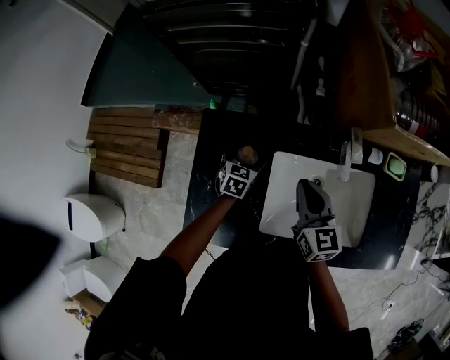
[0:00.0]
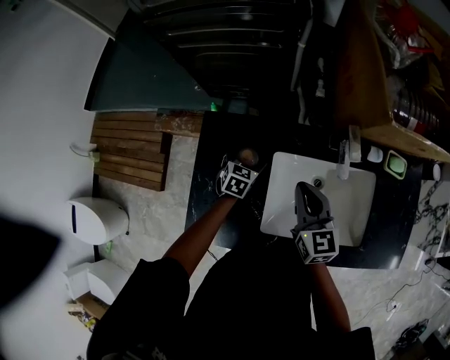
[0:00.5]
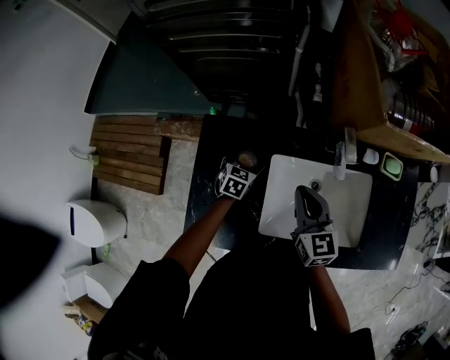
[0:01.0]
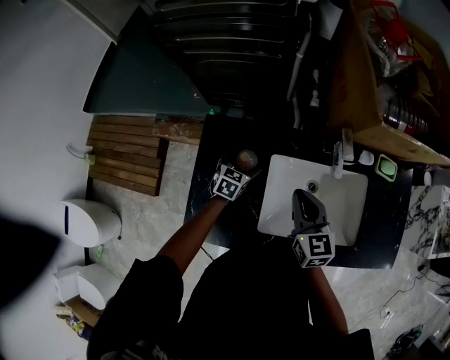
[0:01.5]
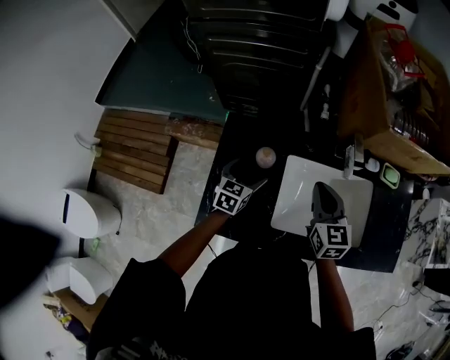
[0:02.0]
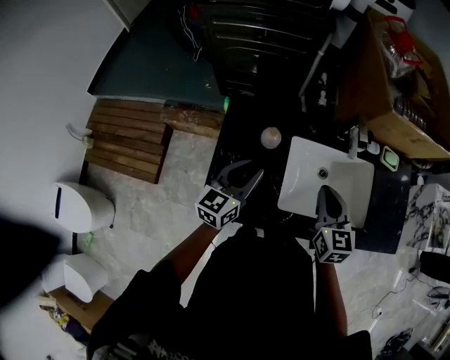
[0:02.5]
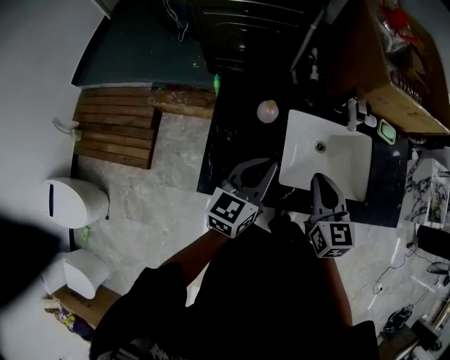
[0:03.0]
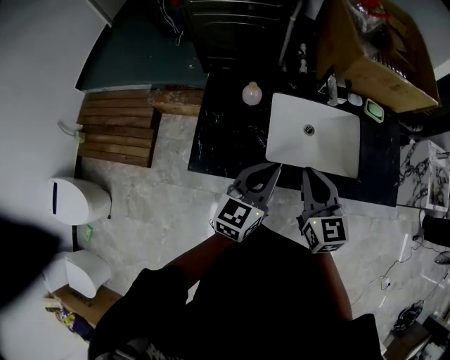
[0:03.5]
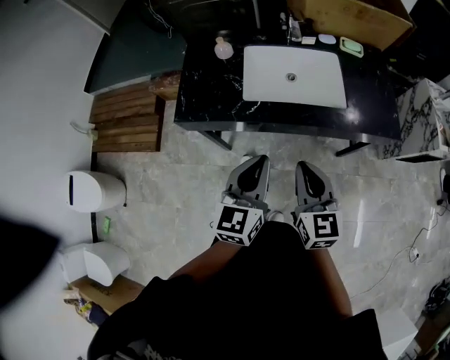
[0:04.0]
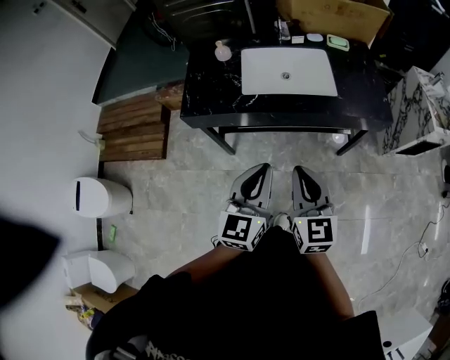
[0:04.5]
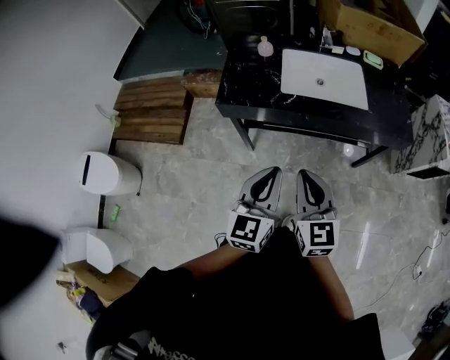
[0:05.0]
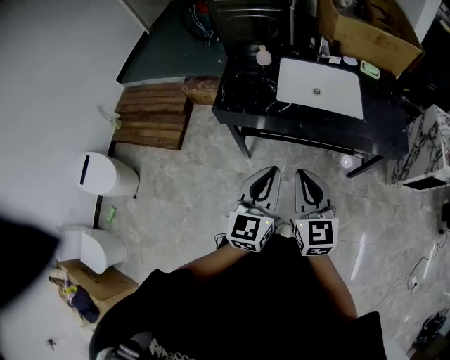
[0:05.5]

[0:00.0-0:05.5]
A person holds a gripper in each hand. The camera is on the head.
0:00.0 to 0:02.0: The right gripper ends up some 5 cm from where it was. Meanwhile the left gripper travels upward and backward by some 15 cm.
0:02.0 to 0:03.5: The right gripper goes some 20 cm backward; the left gripper is displaced backward, upward and to the right by some 30 cm, turns by some 20 degrees, and closes up.
0:03.5 to 0:05.5: The two grippers go approximately 35 cm backward. The left gripper swivels some 20 degrees.

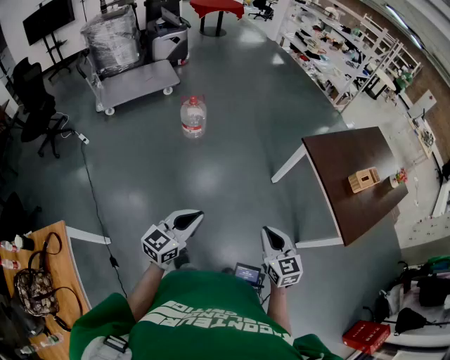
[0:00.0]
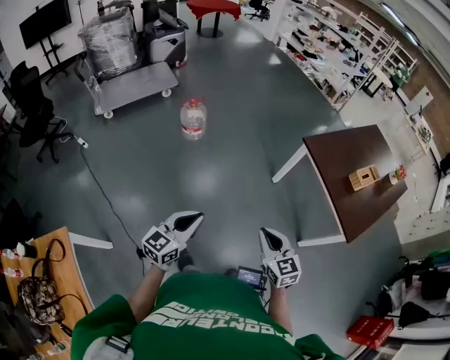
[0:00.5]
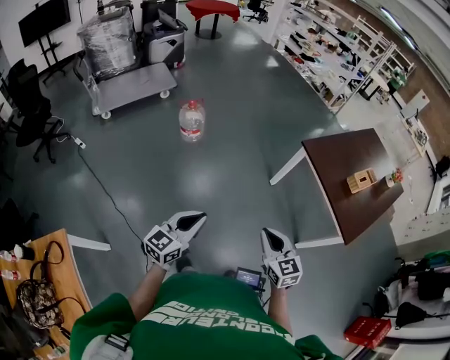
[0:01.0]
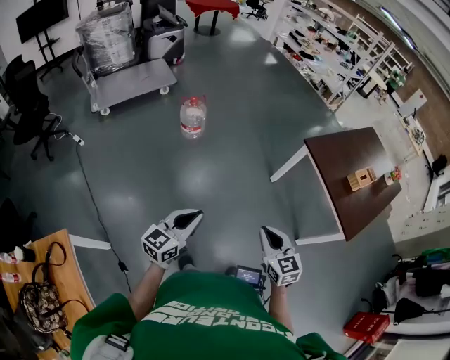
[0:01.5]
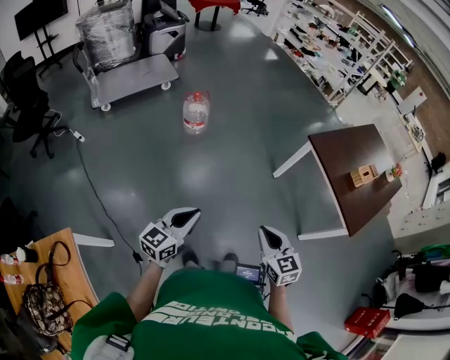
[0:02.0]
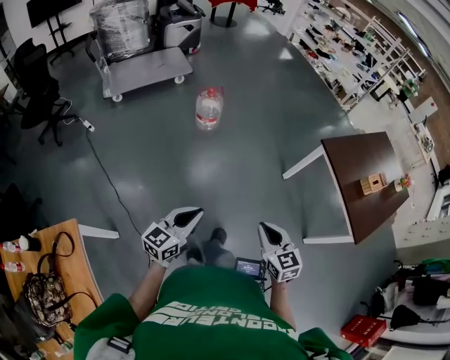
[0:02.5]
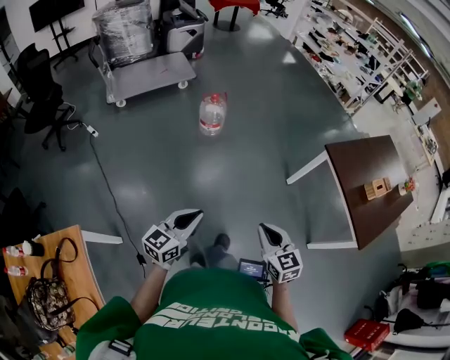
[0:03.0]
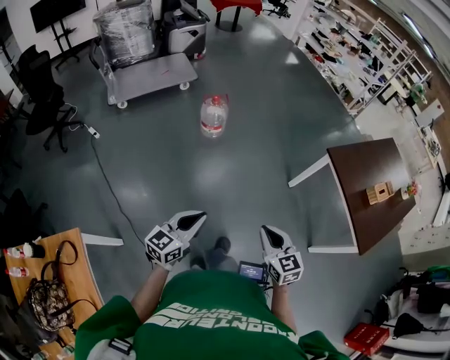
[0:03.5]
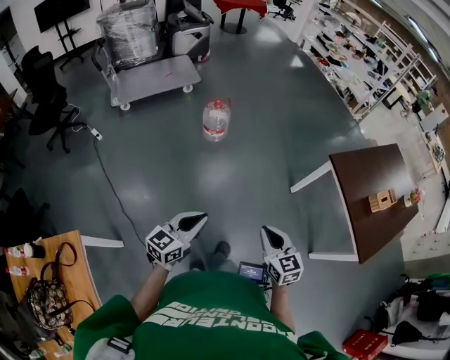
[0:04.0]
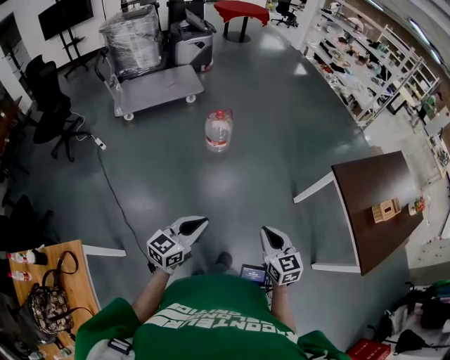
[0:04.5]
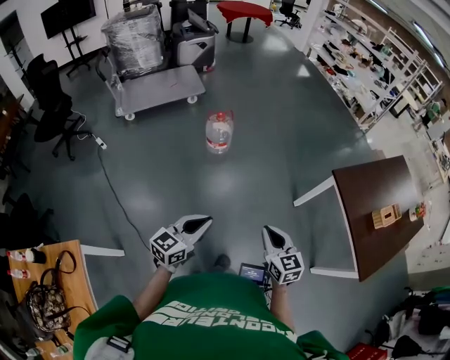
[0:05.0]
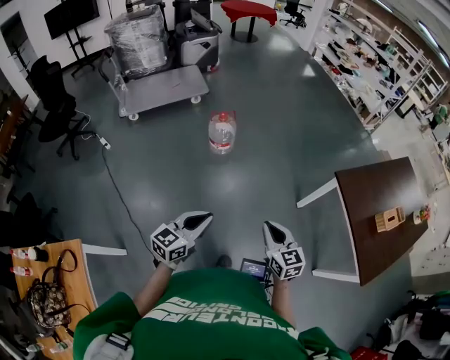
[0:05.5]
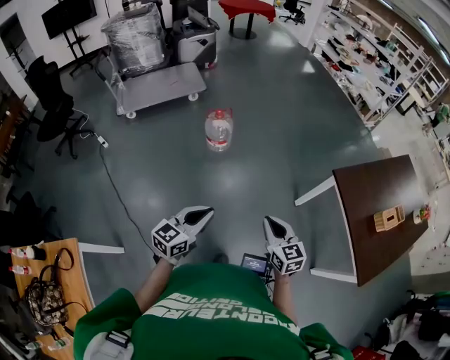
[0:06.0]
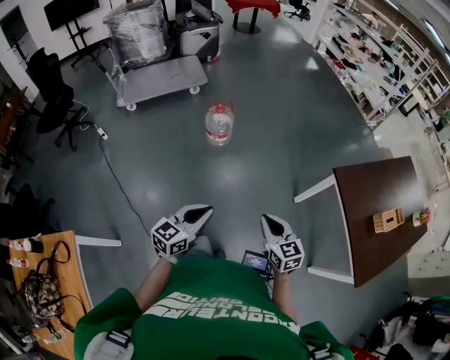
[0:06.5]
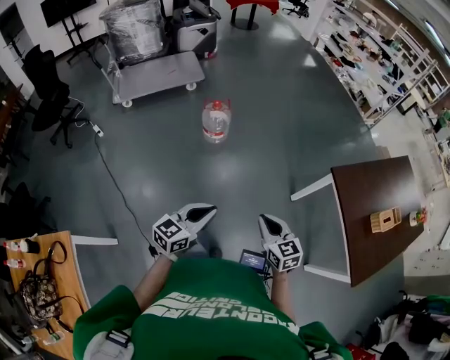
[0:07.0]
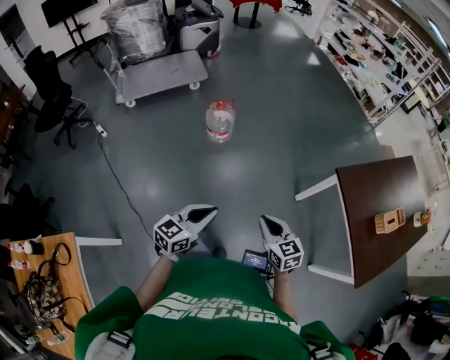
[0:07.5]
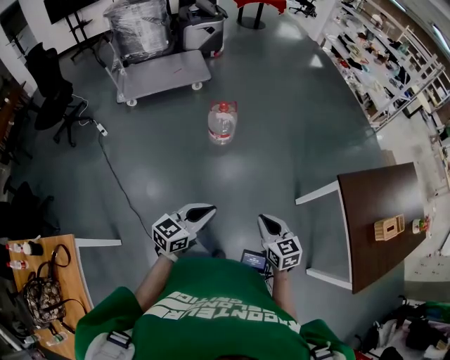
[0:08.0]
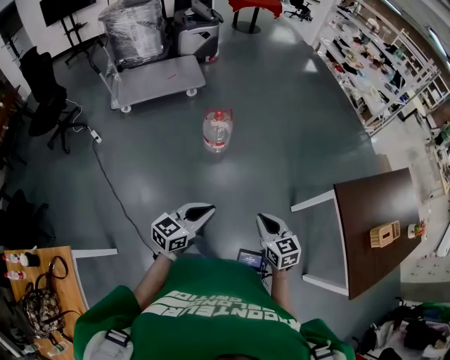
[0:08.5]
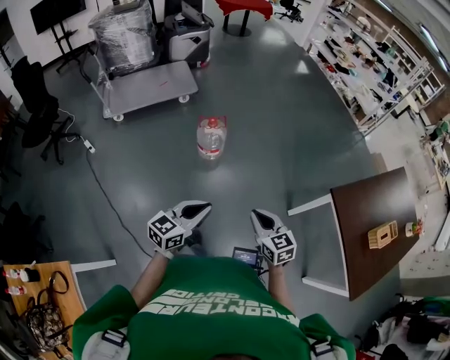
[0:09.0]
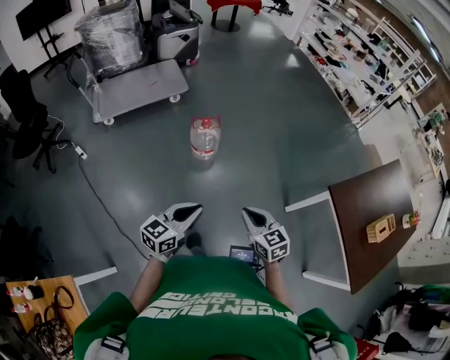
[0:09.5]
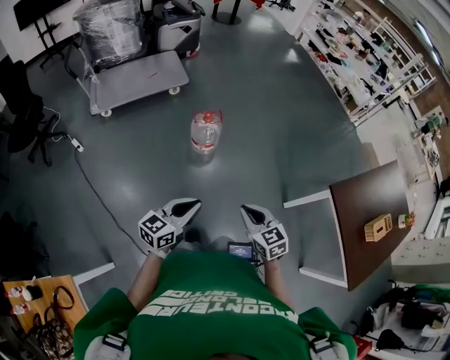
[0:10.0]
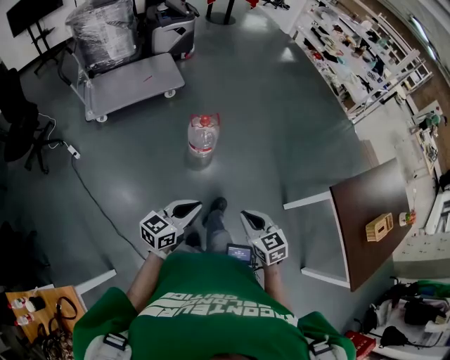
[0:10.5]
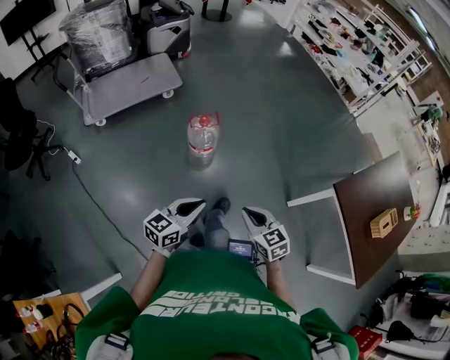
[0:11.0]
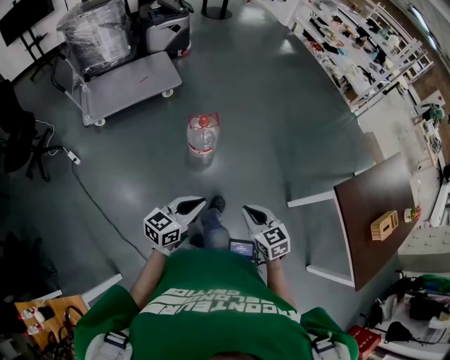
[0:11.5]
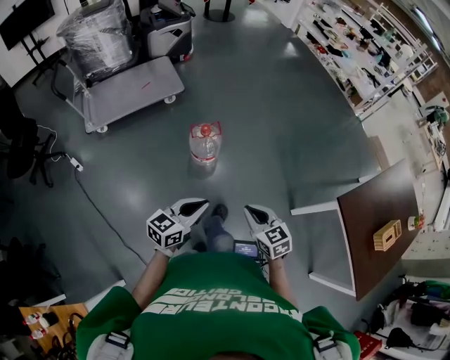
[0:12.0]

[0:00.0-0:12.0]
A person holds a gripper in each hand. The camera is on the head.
0:00.0 to 0:02.0: Both grippers move to the left, about 10 cm.
0:02.0 to 0:04.0: Both grippers move forward, about 10 cm.
0:04.0 to 0:06.0: The right gripper is displaced forward by roughly 15 cm; the left gripper moves forward and to the right, some 15 cm.
0:06.0 to 0:08.0: The right gripper changes place by some 5 cm.
0:08.0 to 0:10.0: The left gripper heads forward and to the left, covering roughly 20 cm; the right gripper heads to the left and forward, covering roughly 20 cm.
0:10.0 to 0:12.0: The two grippers go roughly 15 cm forward.

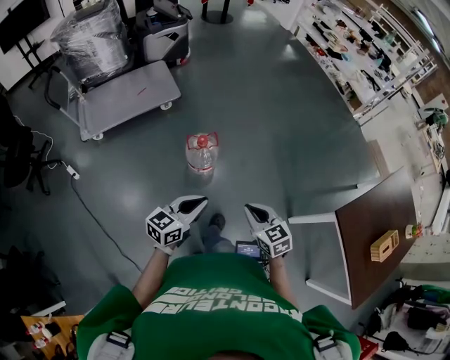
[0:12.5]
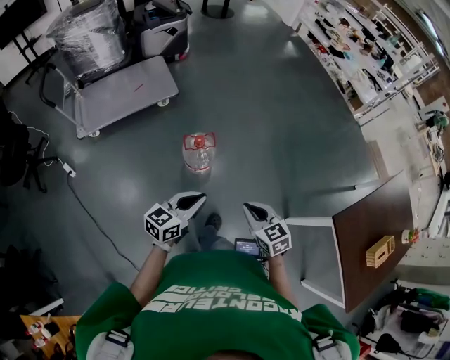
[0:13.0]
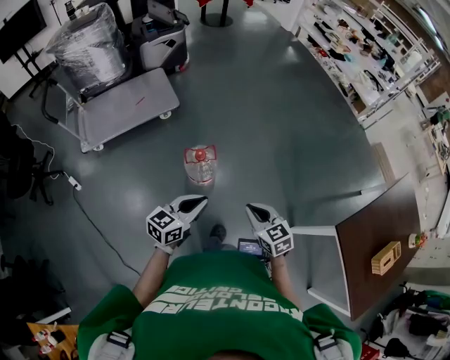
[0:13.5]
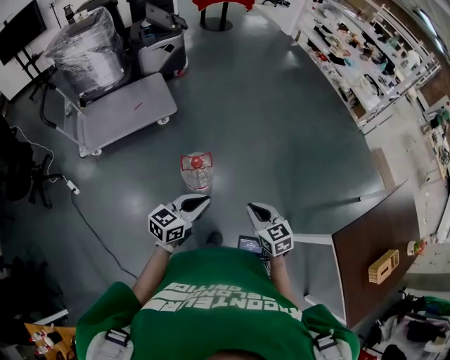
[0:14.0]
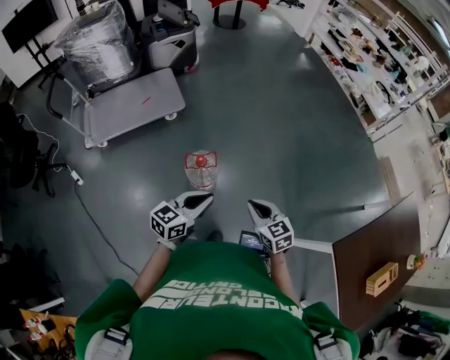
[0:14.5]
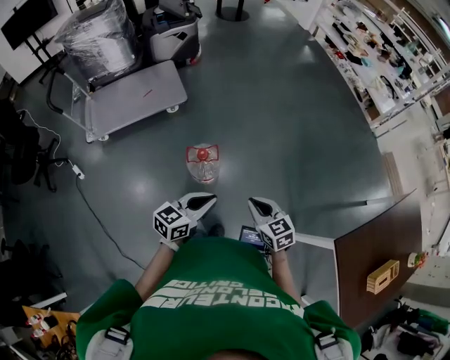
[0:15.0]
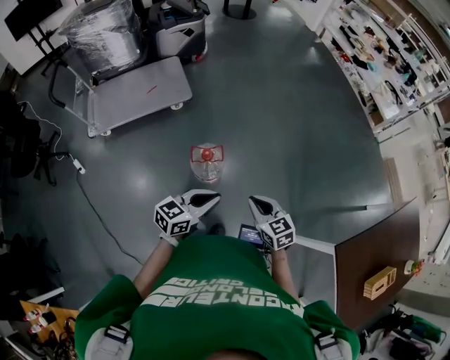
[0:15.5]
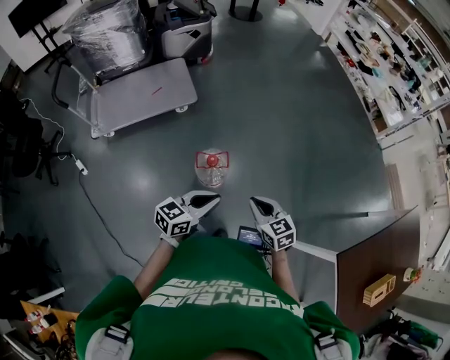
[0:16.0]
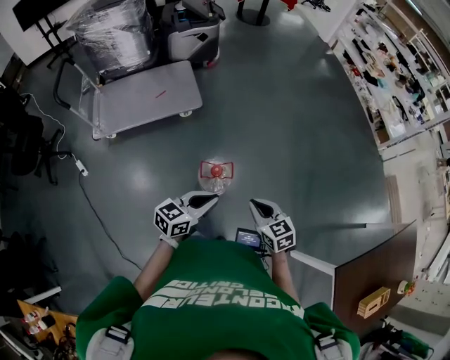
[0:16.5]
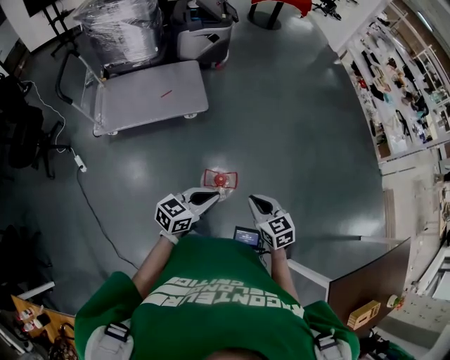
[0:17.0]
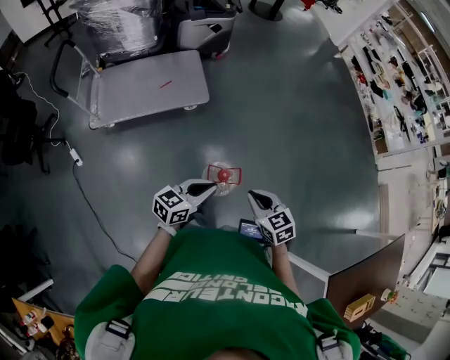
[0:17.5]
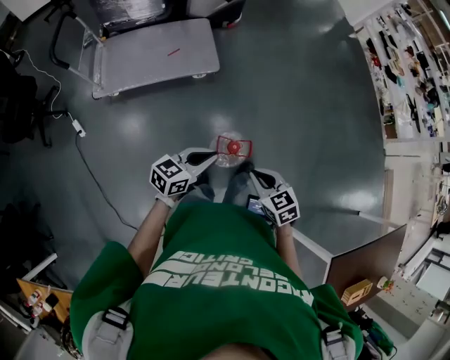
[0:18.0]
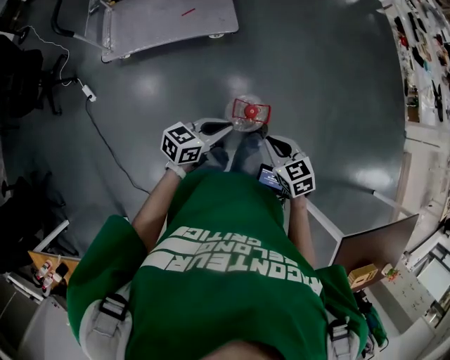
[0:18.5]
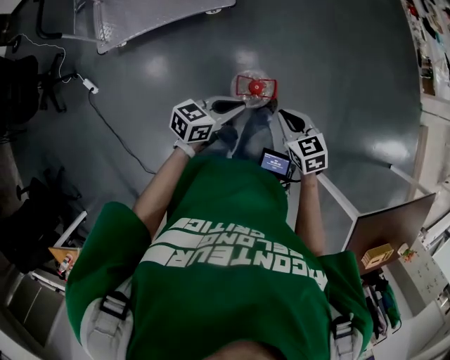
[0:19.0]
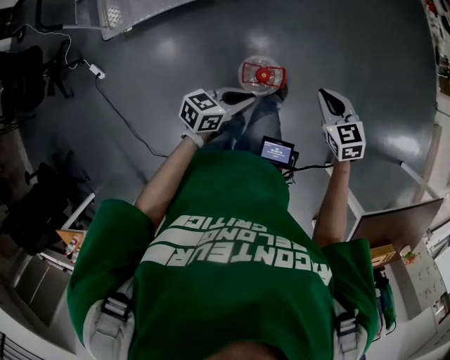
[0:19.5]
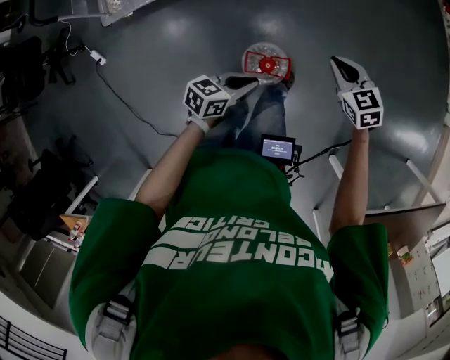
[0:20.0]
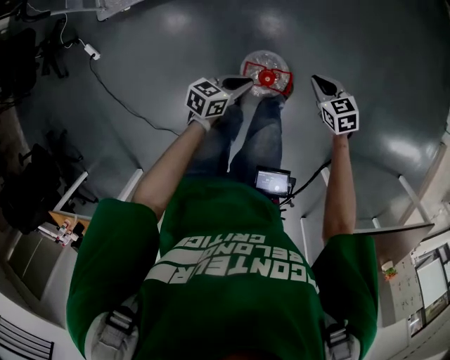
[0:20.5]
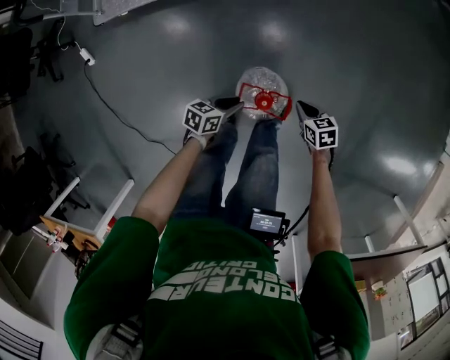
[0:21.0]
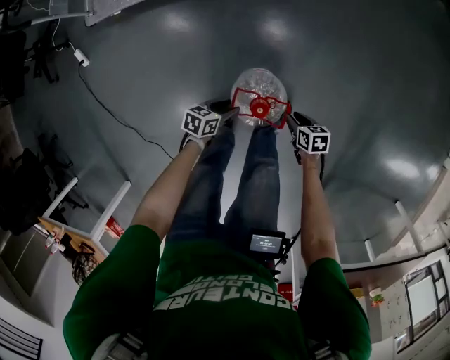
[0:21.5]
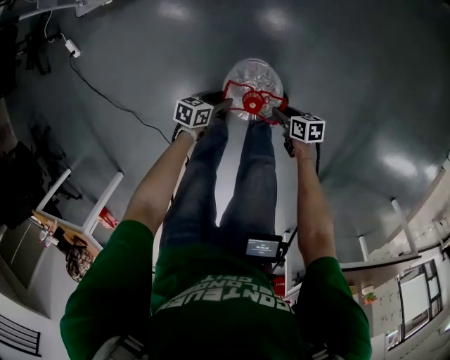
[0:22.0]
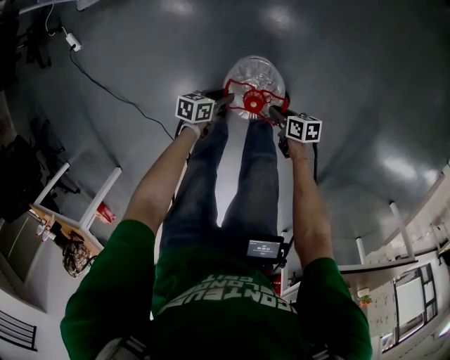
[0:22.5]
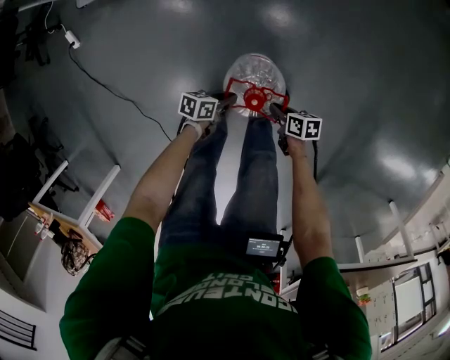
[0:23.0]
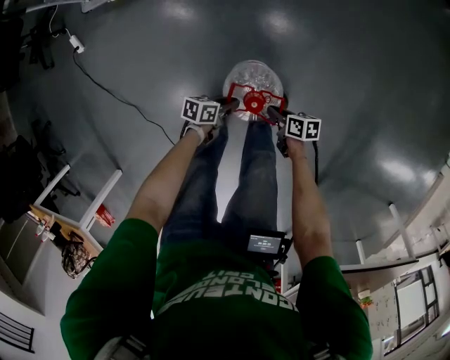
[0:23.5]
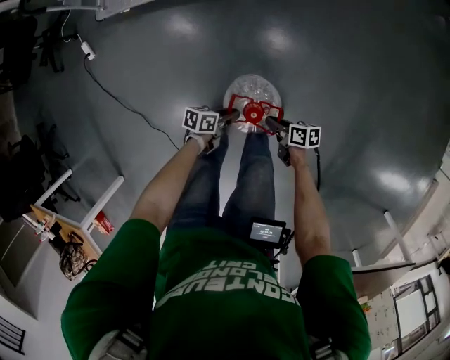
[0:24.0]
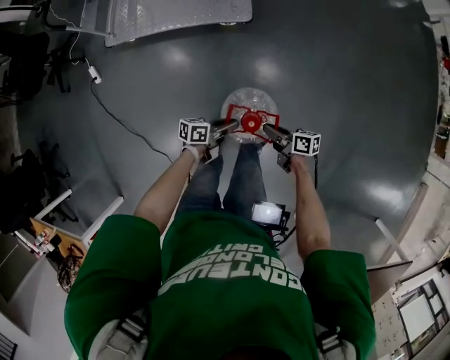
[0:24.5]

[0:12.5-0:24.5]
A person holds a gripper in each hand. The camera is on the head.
0:12.5 to 0:14.5: The grippers both shift forward by some 15 cm.
0:14.5 to 0:16.5: The grippers both shift to the left and forward by approximately 15 cm.
0:16.5 to 0:18.5: The left gripper goes roughly 15 cm to the left, forward and downward. Meanwhile the right gripper goes roughly 15 cm to the left and forward.
0:18.5 to 0:20.5: The right gripper moves downward, forward and to the right, about 30 cm. Meanwhile the left gripper is displaced downward and forward by some 25 cm.
0:20.5 to 0:22.5: Both grippers move downward, roughly 25 cm. The left gripper swivels about 30 degrees, and opens; the right gripper rolls clockwise, seen from behind, by about 40 degrees, and opens, then closes again.
0:22.5 to 0:24.5: The grippers both shift upward by about 25 cm. The right gripper swivels some 20 degrees, while the left gripper swivels approximately 20 degrees.
